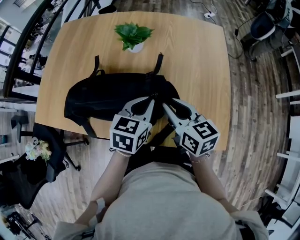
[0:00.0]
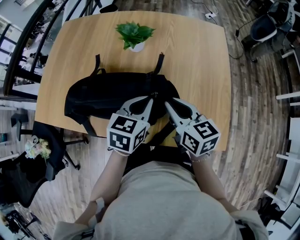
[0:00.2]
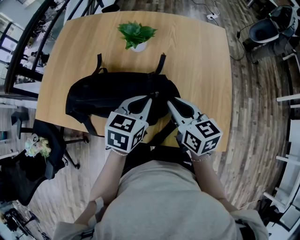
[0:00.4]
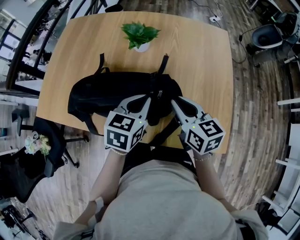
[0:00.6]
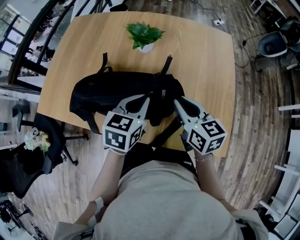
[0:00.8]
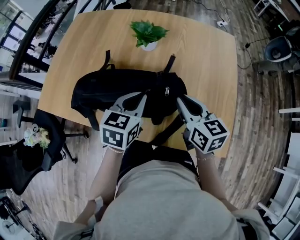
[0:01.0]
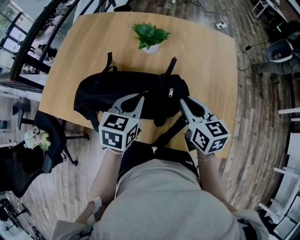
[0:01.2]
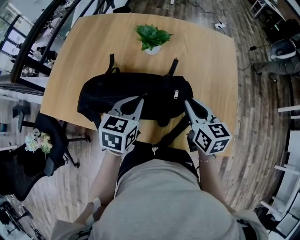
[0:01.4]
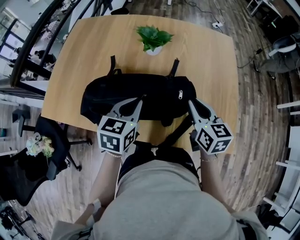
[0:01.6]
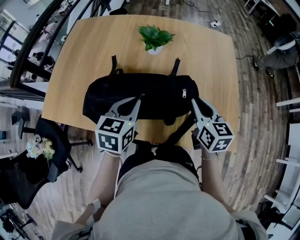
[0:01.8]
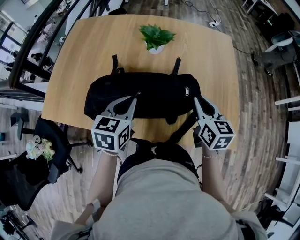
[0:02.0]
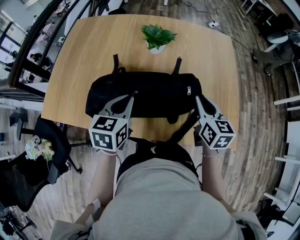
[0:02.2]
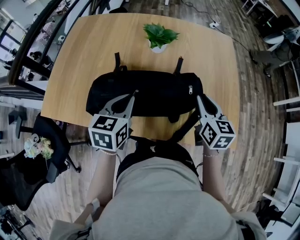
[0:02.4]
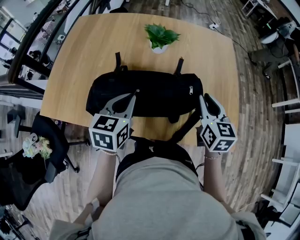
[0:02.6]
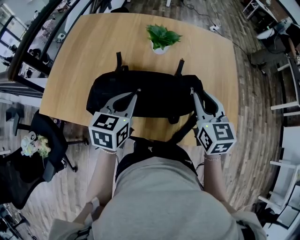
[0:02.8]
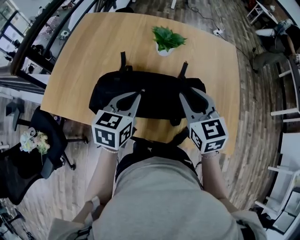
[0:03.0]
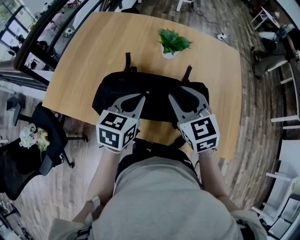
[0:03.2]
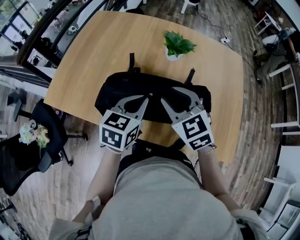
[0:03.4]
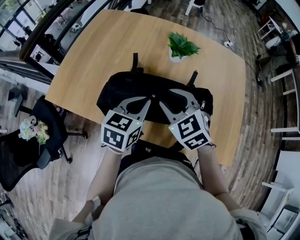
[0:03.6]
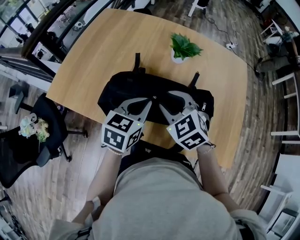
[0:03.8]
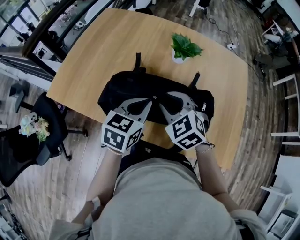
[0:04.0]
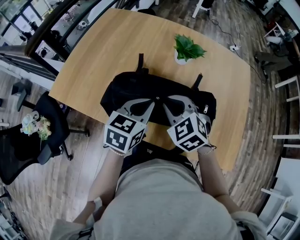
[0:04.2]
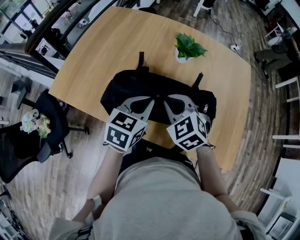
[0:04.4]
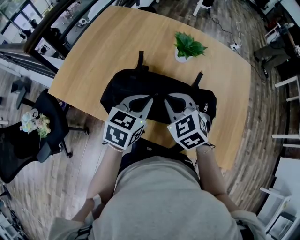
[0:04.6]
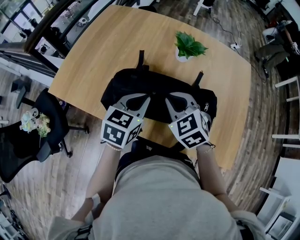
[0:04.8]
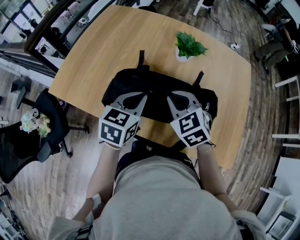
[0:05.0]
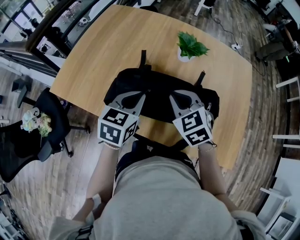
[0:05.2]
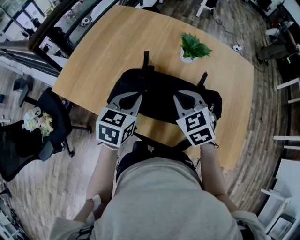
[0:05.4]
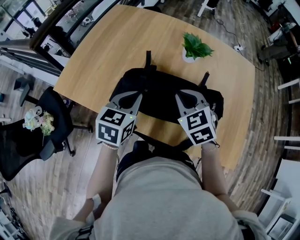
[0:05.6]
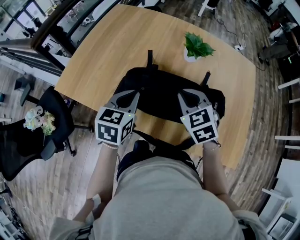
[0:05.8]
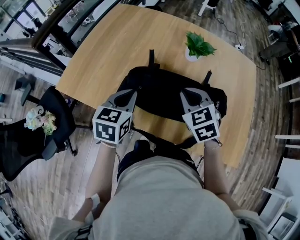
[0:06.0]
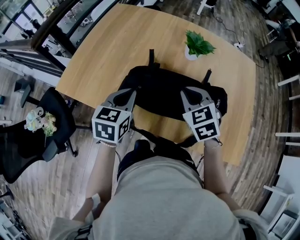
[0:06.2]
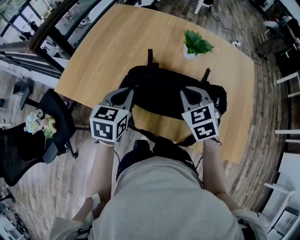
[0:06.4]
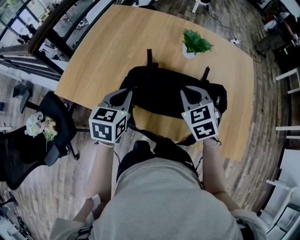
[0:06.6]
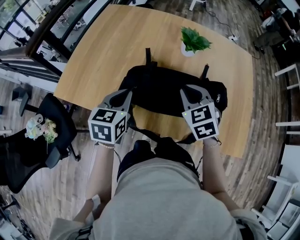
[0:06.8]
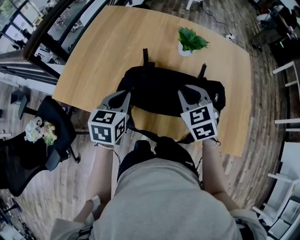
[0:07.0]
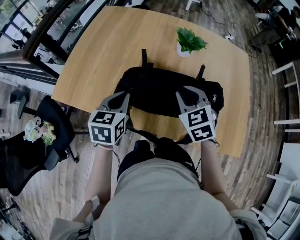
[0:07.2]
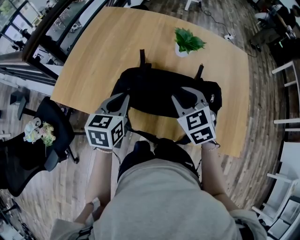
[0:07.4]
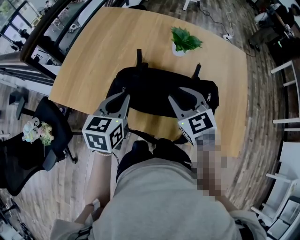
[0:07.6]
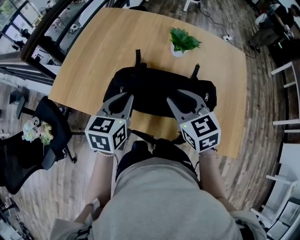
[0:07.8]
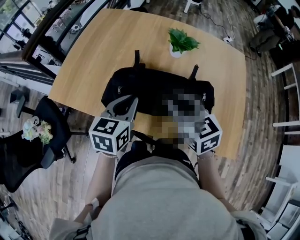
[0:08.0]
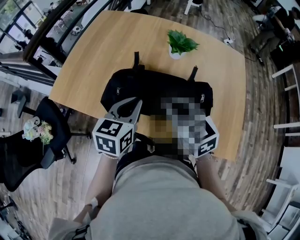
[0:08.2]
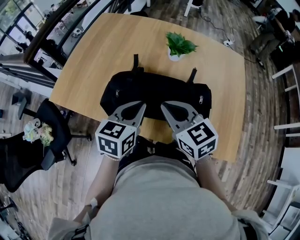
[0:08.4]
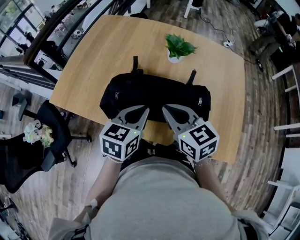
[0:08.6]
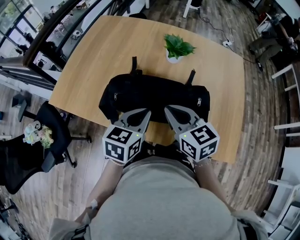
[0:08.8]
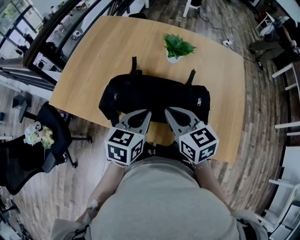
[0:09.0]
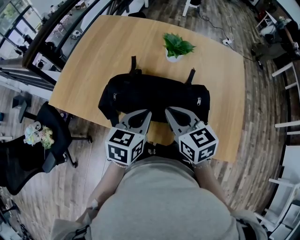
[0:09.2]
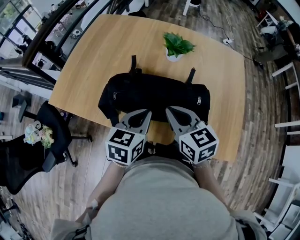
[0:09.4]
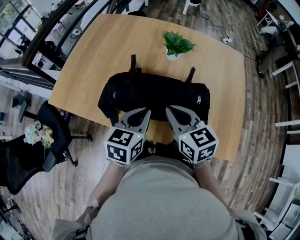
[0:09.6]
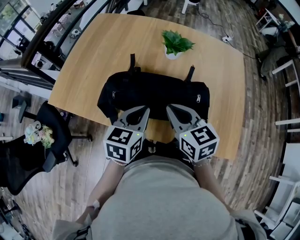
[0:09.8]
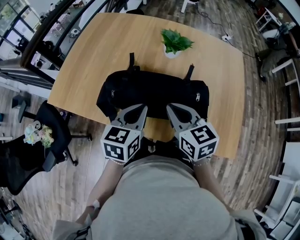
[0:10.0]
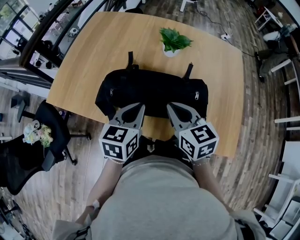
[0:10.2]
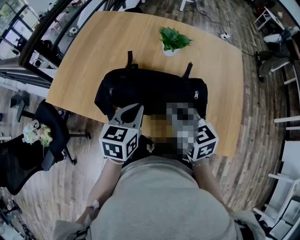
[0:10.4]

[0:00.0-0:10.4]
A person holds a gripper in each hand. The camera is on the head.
0.0 to 1.4 s: The left gripper is displaced to the left by approximately 10 cm.
1.4 to 3.0 s: The left gripper shifts some 10 cm to the left; the right gripper travels to the left and upward by some 10 cm, and turns by approximately 30 degrees.
3.0 to 4.4 s: The right gripper heads to the left and downward, covering approximately 10 cm, and changes its angle by approximately 40 degrees.
4.4 to 6.0 s: The left gripper travels to the left by some 10 cm.
6.0 to 7.4 s: The right gripper opens.
7.4 to 9.0 s: The left gripper heads to the right, covering roughly 10 cm; the right gripper is displaced backward by roughly 5 cm, changes its angle by about 30 degrees, and closes its fingers.
9.0 to 10.4 s: There are only small adjustments of the grippers.

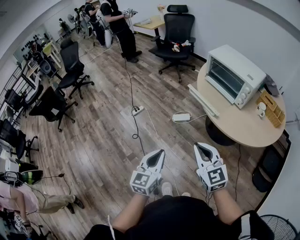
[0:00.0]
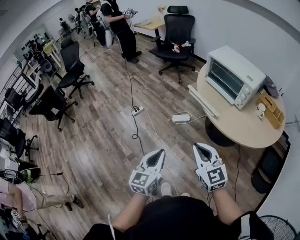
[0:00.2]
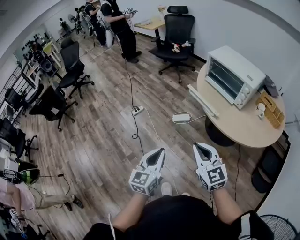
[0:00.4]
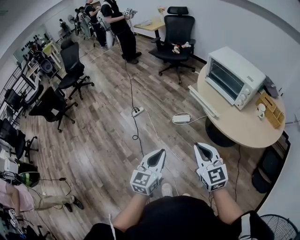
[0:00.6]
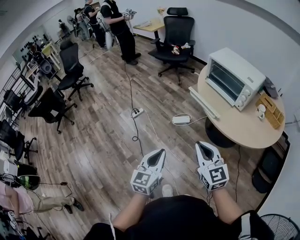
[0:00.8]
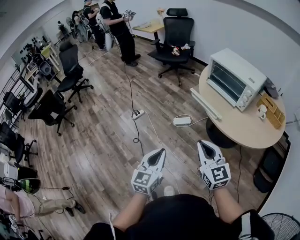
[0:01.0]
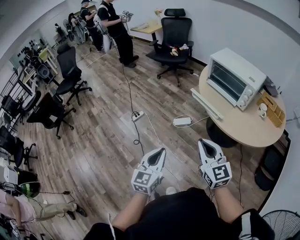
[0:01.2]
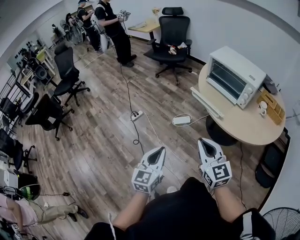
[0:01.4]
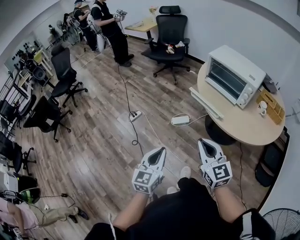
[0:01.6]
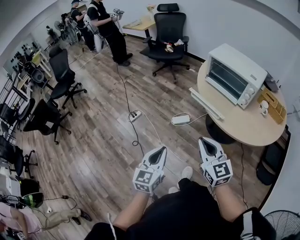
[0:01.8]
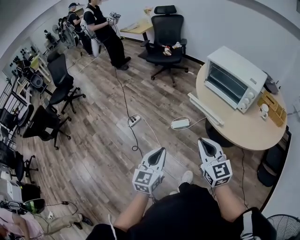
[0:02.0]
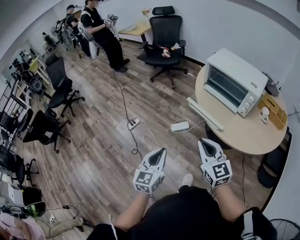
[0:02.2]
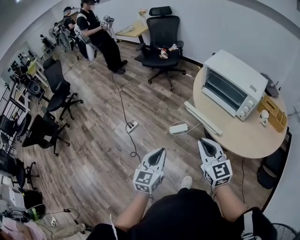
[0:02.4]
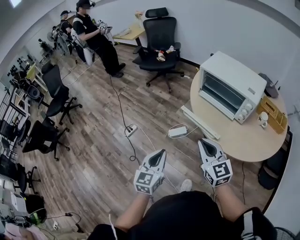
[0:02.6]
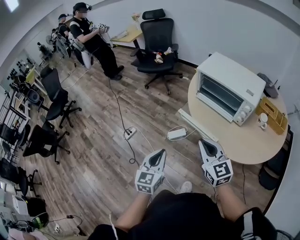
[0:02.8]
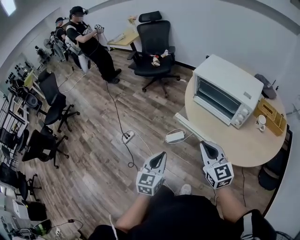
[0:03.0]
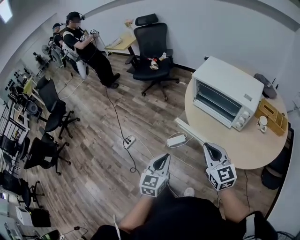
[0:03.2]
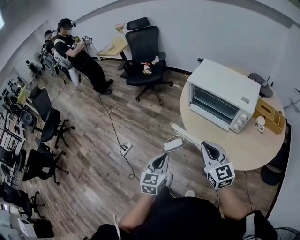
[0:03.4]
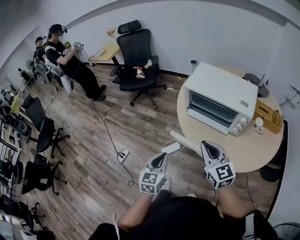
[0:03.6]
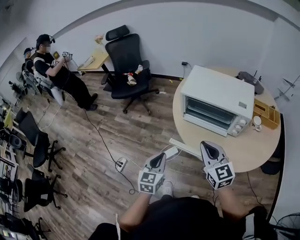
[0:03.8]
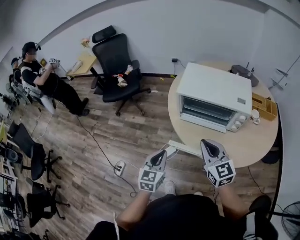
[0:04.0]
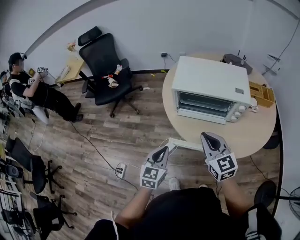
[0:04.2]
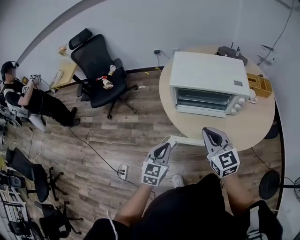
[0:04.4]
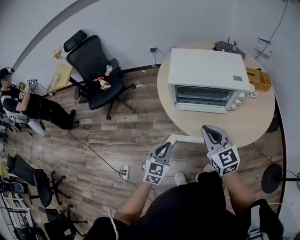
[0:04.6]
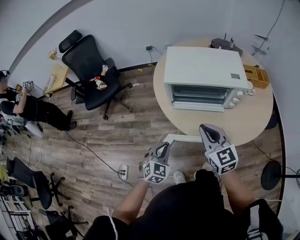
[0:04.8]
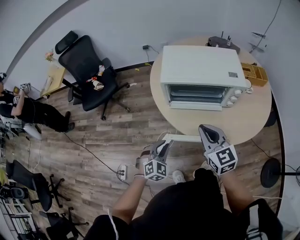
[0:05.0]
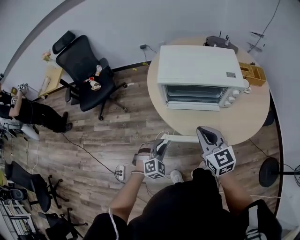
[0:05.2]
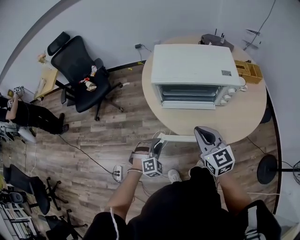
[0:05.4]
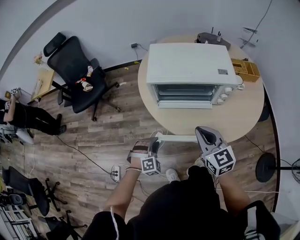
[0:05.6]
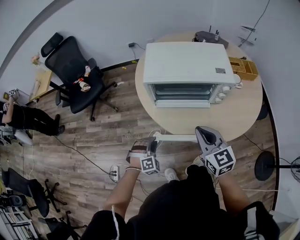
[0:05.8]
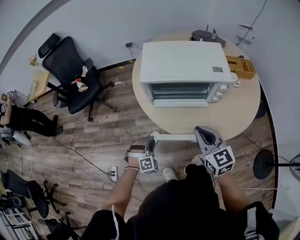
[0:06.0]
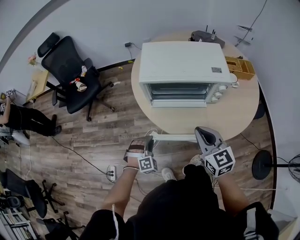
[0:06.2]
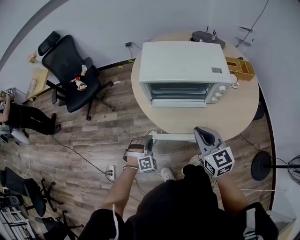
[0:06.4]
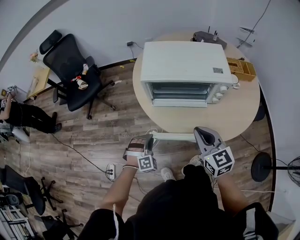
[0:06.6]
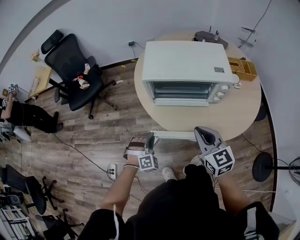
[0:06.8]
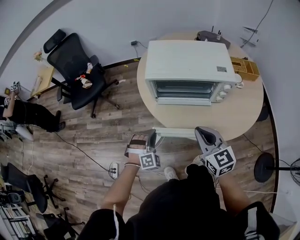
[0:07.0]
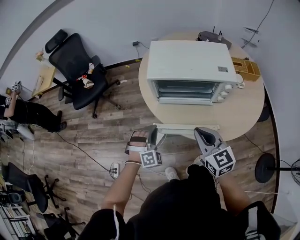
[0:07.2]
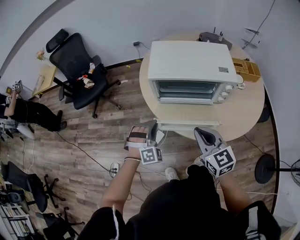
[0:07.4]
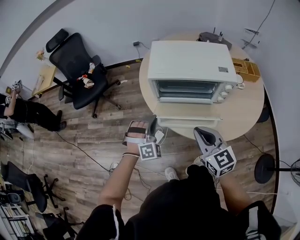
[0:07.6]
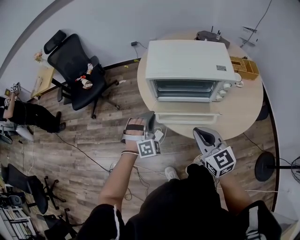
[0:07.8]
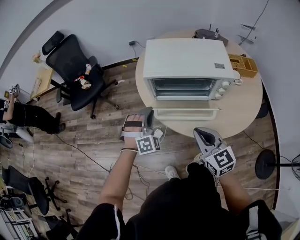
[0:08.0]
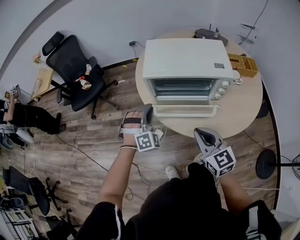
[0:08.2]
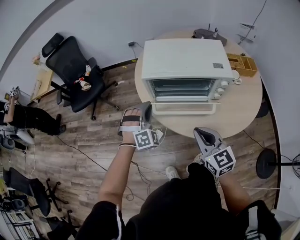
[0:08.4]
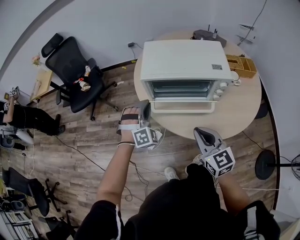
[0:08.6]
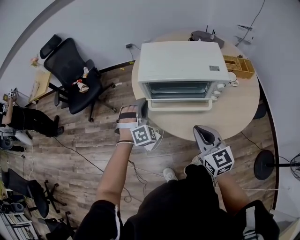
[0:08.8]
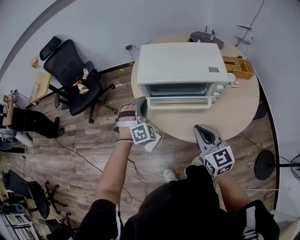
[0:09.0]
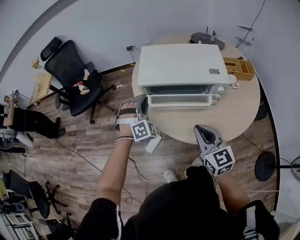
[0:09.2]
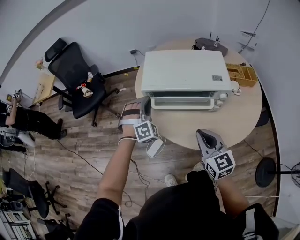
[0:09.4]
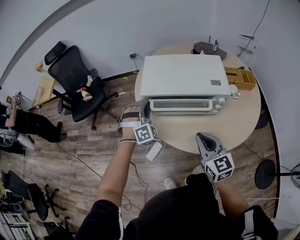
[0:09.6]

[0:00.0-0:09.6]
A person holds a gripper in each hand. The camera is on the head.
0.0 to 1.6 s: The right gripper moves some 5 cm, while the left gripper moves forward, approximately 5 cm.
1.6 to 3.2 s: Both grippers move forward and to the right, some 25 cm.
3.2 to 4.8 s: The left gripper shifts by some 25 cm, and changes its angle by some 50 degrees. The right gripper changes place by about 15 cm, and swivels roughly 30 degrees.
4.8 to 6.4 s: The left gripper goes about 10 cm downward, and rolls clockwise, seen from behind, by roughly 40 degrees, while the right gripper travels to the right by about 5 cm.
6.4 to 8.0 s: The left gripper travels upward and forward by approximately 20 cm.
8.0 to 9.6 s: The left gripper moves forward, approximately 10 cm; the right gripper ends up roughly 5 cm from where it was.

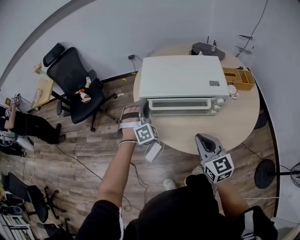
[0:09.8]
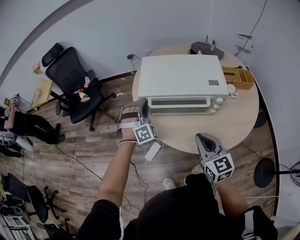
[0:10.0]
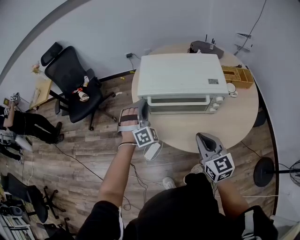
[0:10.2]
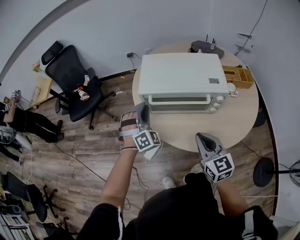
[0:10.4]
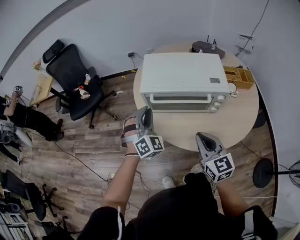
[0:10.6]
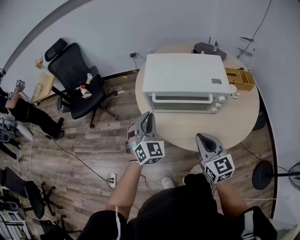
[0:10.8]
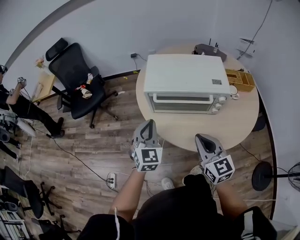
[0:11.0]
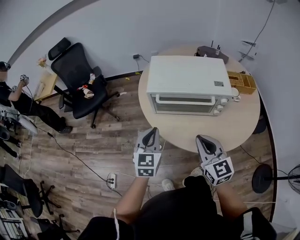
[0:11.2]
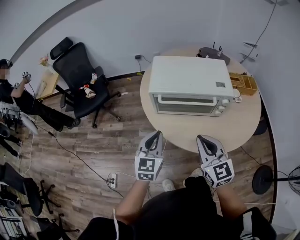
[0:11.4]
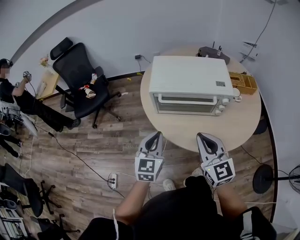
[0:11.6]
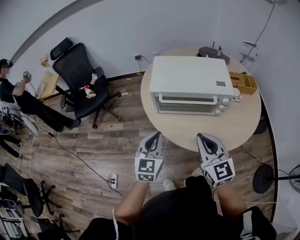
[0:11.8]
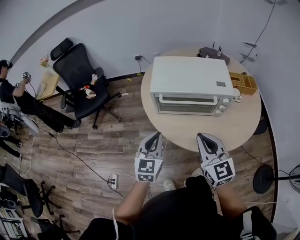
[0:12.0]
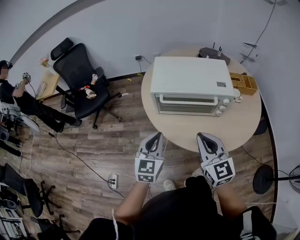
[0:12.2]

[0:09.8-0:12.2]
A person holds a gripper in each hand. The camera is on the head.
9.8 to 11.0 s: The left gripper goes approximately 15 cm backward, and twists approximately 50 degrees counterclockwise, seen from behind.
11.0 to 12.2 s: The left gripper heads backward, covering approximately 5 cm.

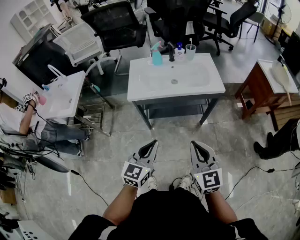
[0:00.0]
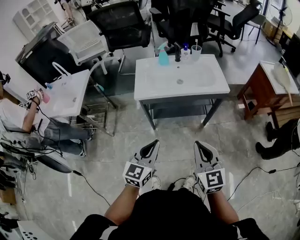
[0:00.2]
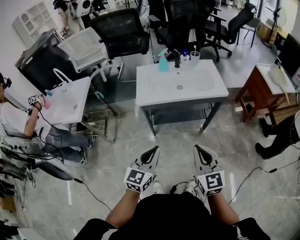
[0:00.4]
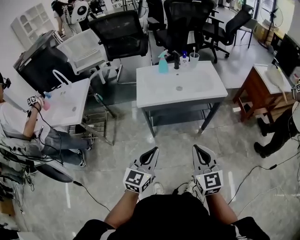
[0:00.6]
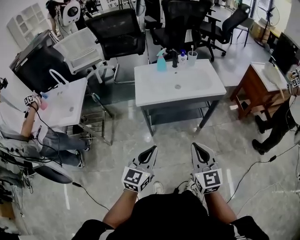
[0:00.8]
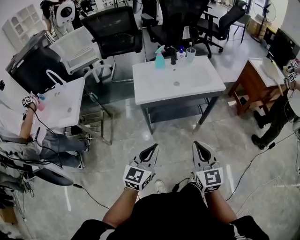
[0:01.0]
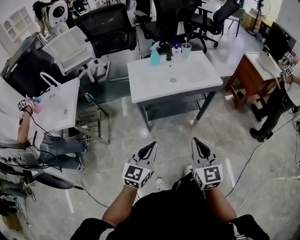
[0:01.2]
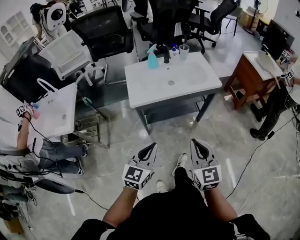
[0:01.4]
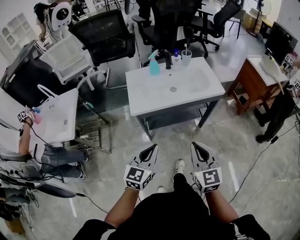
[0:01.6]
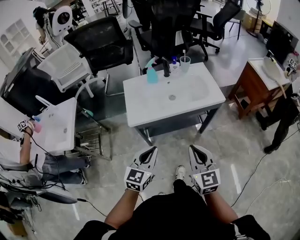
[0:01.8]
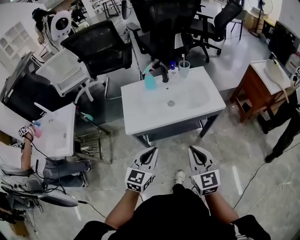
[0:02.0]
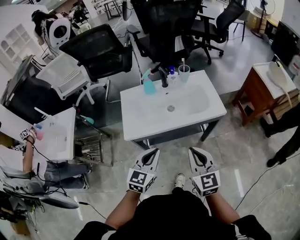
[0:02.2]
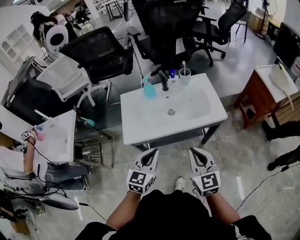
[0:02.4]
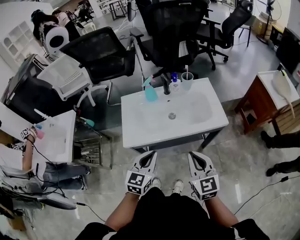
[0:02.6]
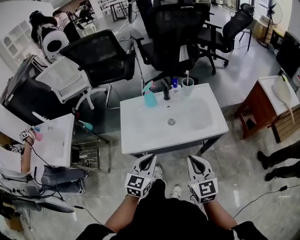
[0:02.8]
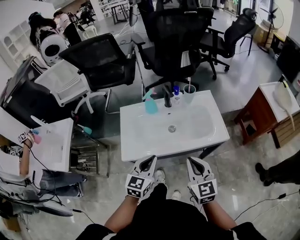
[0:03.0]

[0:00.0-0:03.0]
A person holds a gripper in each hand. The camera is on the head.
0.0 to 1.6 s: Both grippers move to the left, roughly 10 cm.
1.6 to 3.0 s: Both grippers travel together forward, approximately 25 cm.
